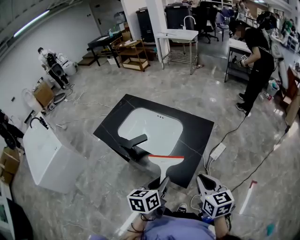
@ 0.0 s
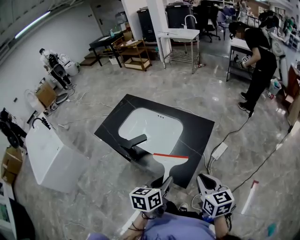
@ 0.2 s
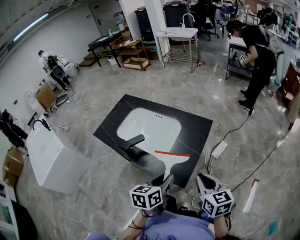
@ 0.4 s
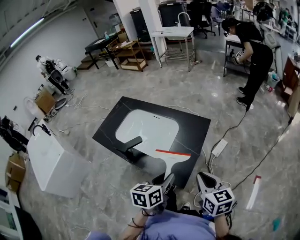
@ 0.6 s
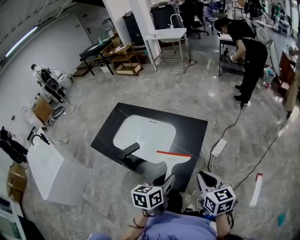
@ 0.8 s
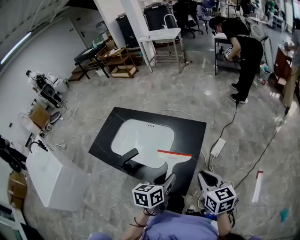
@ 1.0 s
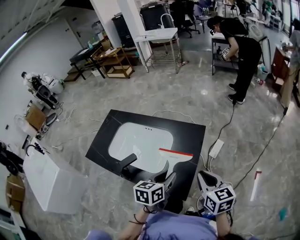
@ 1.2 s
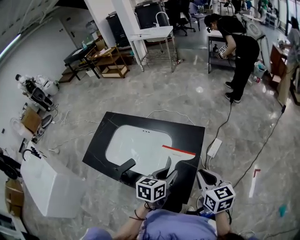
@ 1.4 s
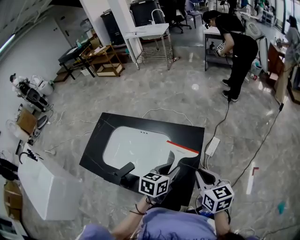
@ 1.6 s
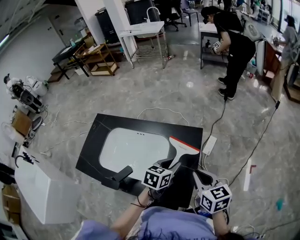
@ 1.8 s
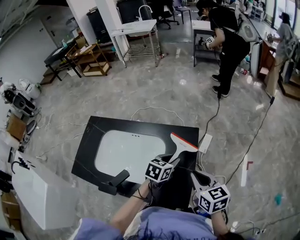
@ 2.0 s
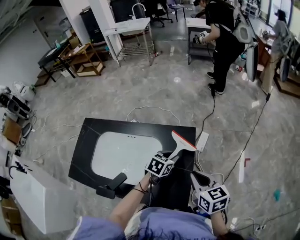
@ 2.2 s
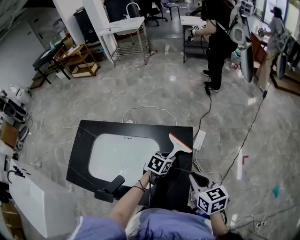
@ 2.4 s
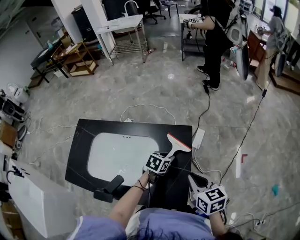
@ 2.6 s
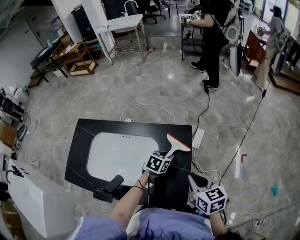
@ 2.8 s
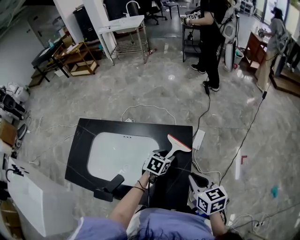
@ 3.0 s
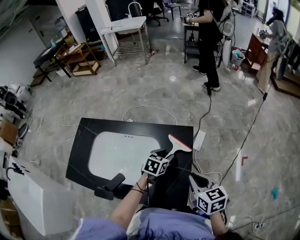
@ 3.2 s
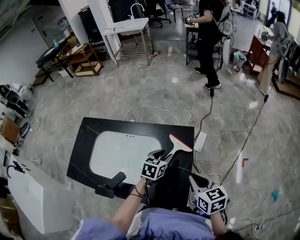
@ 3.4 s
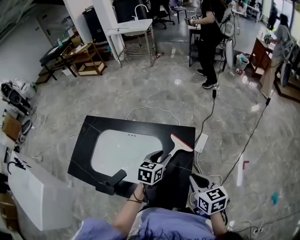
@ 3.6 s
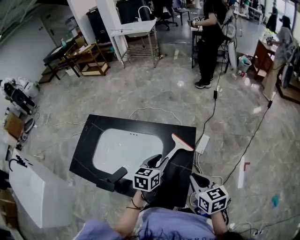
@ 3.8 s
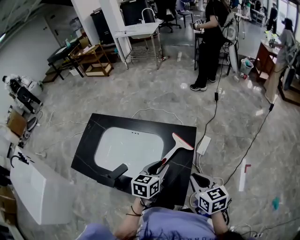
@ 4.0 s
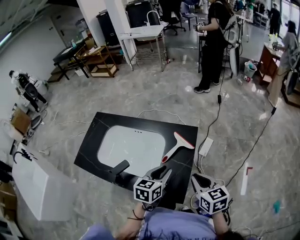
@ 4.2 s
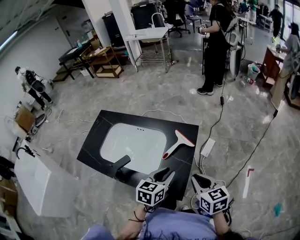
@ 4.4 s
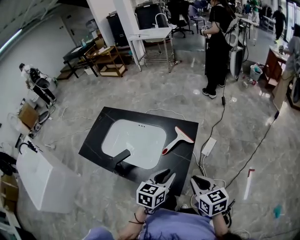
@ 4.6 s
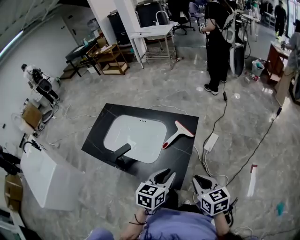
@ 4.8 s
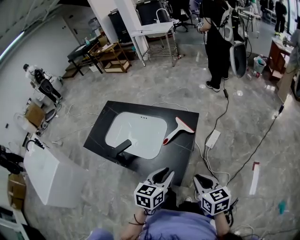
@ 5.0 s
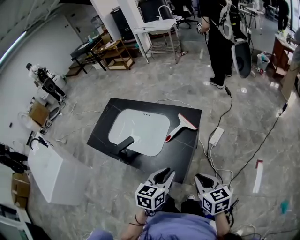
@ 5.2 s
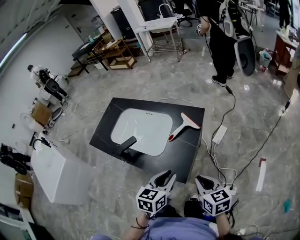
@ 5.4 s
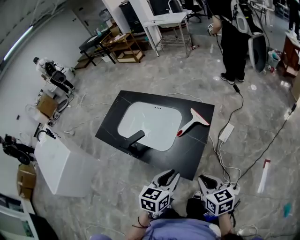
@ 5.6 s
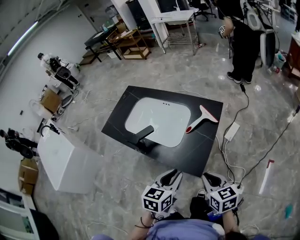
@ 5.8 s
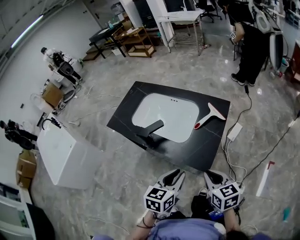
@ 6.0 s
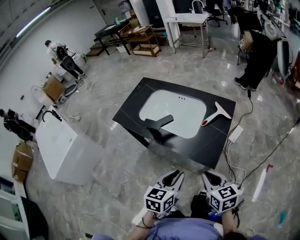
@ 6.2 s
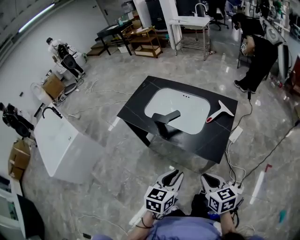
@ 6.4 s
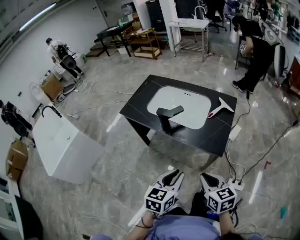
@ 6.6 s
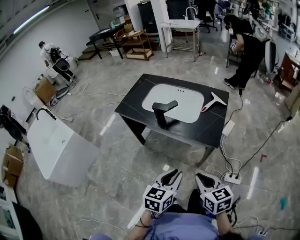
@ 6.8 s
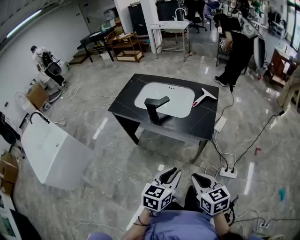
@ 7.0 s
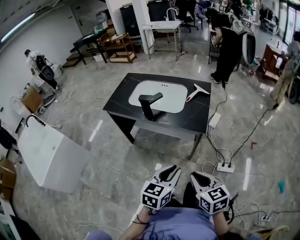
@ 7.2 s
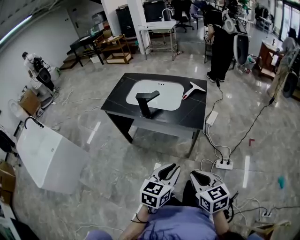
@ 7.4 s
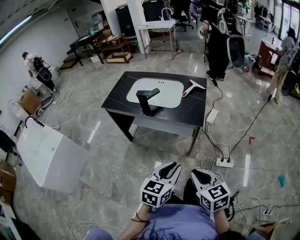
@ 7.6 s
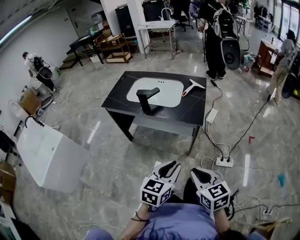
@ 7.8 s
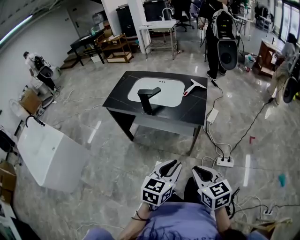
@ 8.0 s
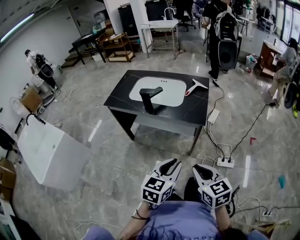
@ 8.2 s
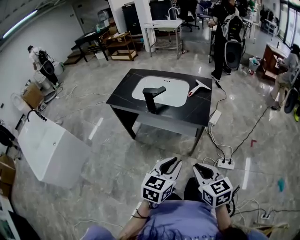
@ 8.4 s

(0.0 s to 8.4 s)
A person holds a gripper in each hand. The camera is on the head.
0.0 s - 1.4 s: The grippers both shift forward by some 15 cm. The left gripper rotates some 30 degrees.
1.4 s - 2.8 s: The right gripper ends up some 5 cm from where it was. The left gripper goes roughly 20 cm downward and forward, and turns by roughly 30 degrees.
2.8 s - 4.2 s: The left gripper goes approximately 20 cm backward and upward, and changes its angle by roughly 30 degrees. The right gripper changes place by approximately 5 cm.
4.2 s - 5.6 s: The two grippers go roughly 15 cm backward.
5.6 s - 7.0 s: Both grippers travel together backward and to the left, some 30 cm.
7.0 s - 8.4 s: Both grippers move backward, about 5 cm.

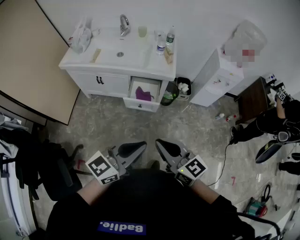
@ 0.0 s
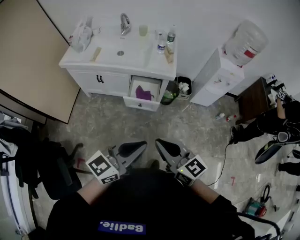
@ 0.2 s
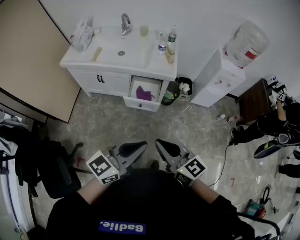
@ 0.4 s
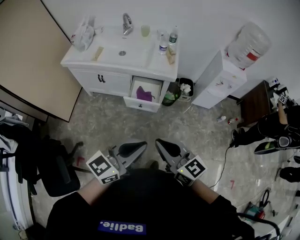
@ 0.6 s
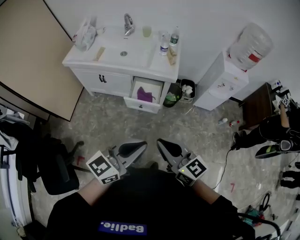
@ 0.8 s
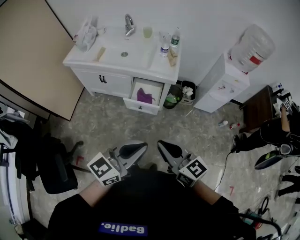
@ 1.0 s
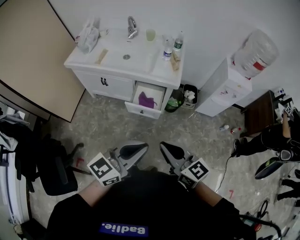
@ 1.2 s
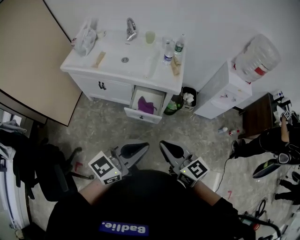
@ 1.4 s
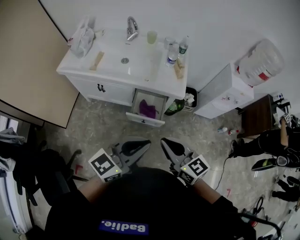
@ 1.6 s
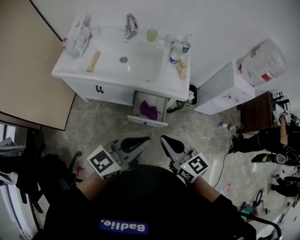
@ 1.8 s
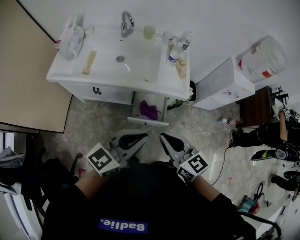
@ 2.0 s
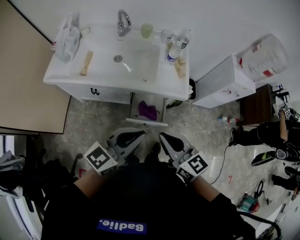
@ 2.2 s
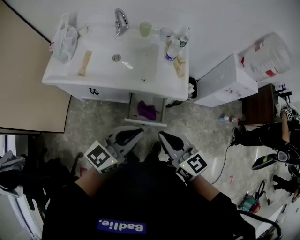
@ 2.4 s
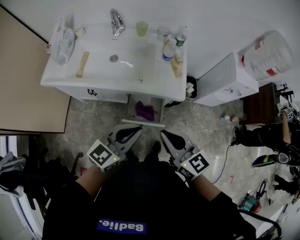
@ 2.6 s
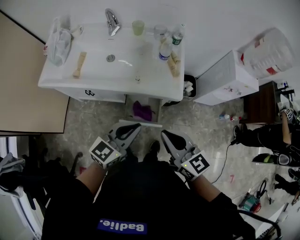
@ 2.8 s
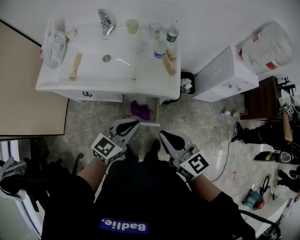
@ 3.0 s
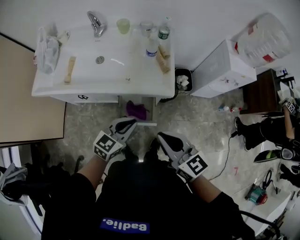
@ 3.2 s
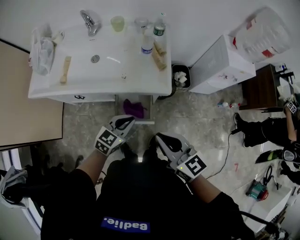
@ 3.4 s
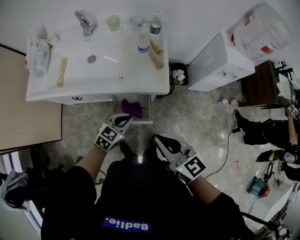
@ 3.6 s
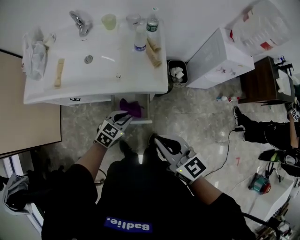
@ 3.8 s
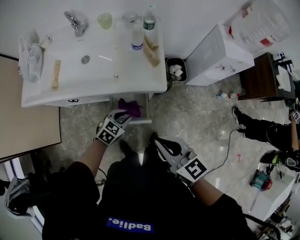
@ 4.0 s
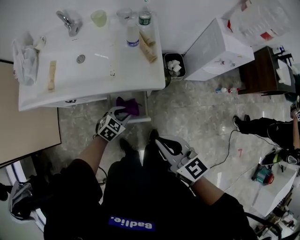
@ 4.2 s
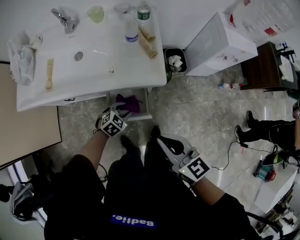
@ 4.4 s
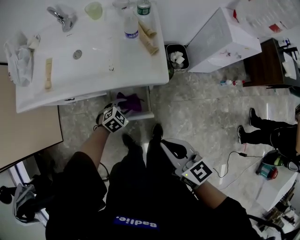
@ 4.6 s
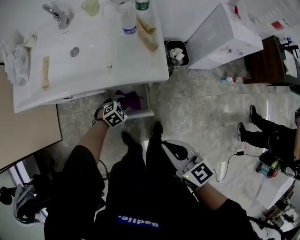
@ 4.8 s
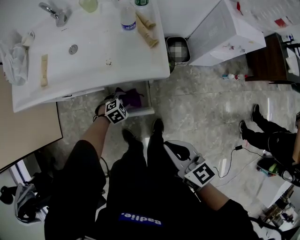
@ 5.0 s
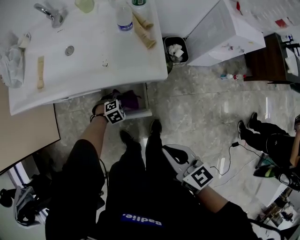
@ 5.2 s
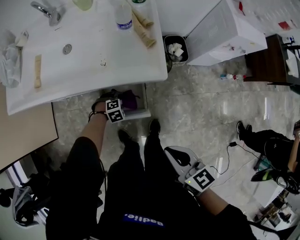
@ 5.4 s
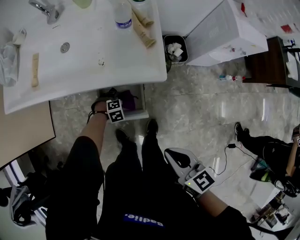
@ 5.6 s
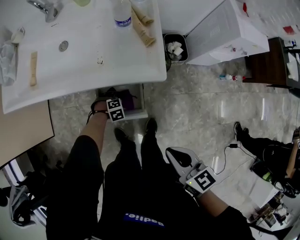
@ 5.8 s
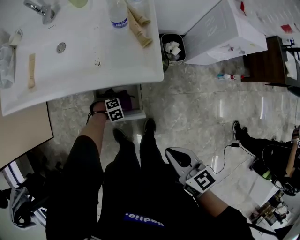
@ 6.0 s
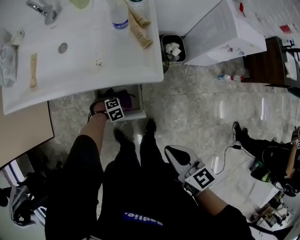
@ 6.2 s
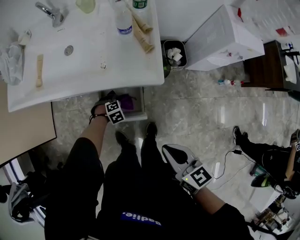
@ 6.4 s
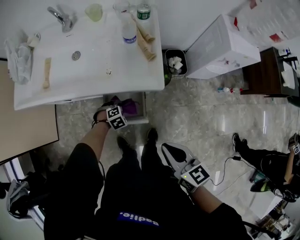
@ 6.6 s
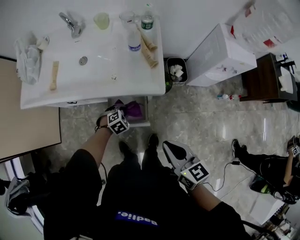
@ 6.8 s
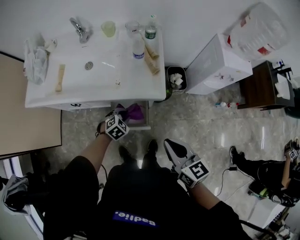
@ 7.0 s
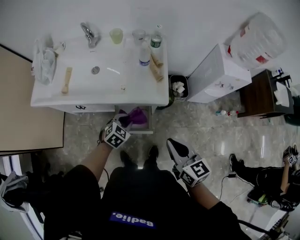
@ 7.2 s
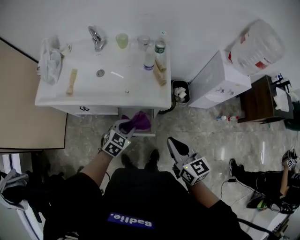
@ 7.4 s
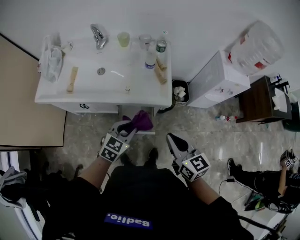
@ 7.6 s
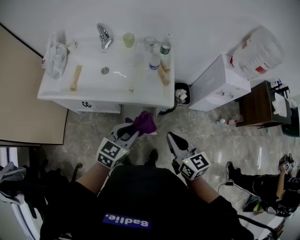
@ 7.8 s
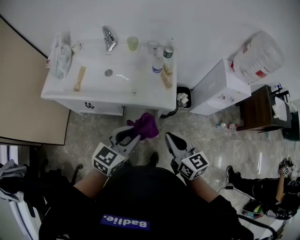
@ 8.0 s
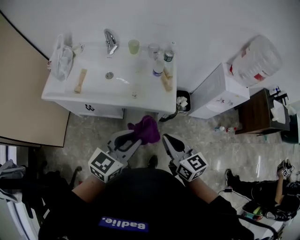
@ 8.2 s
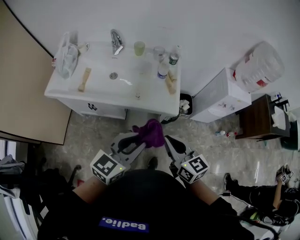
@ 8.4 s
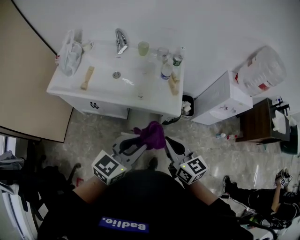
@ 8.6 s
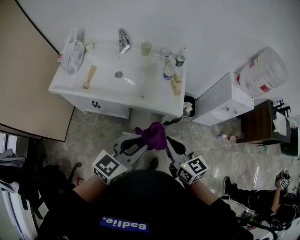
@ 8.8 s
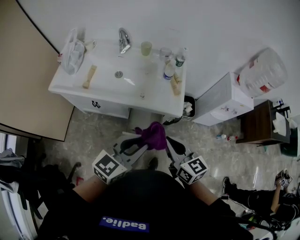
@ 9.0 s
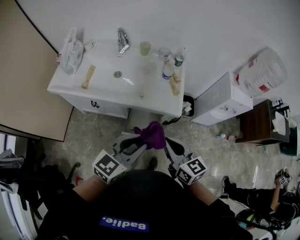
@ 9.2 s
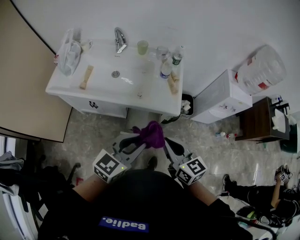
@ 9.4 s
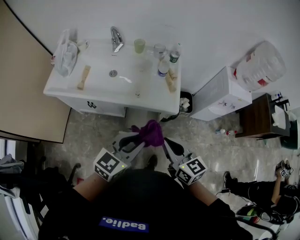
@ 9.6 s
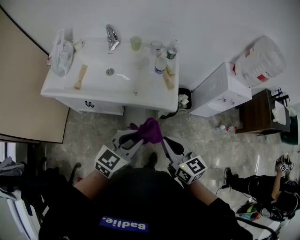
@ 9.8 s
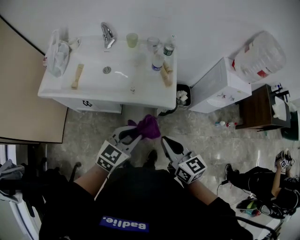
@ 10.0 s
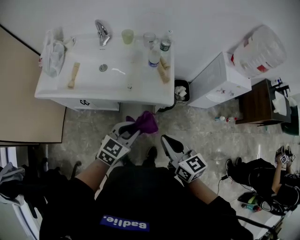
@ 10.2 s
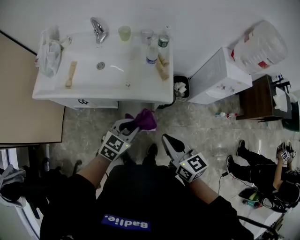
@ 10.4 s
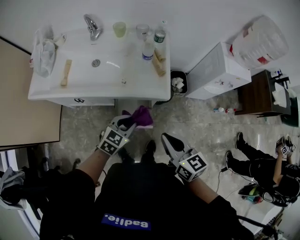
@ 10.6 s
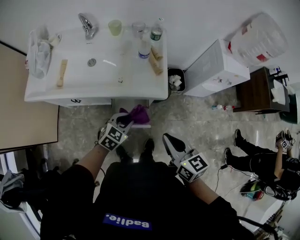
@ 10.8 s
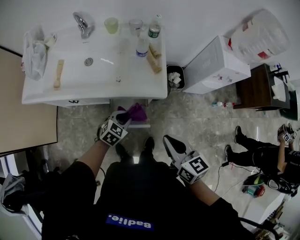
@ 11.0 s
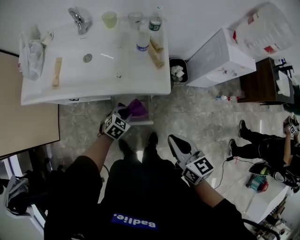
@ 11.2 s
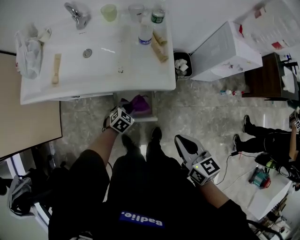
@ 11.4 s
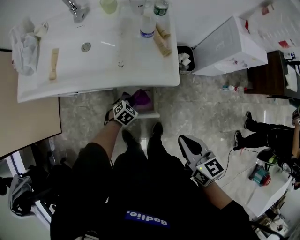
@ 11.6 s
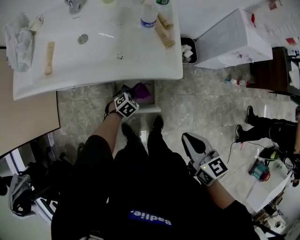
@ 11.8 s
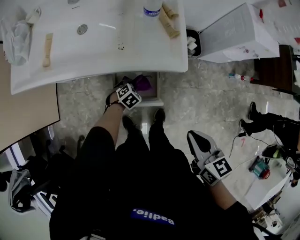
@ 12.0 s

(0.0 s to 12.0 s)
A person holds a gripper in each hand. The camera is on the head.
0.0 s - 1.6 s: Both grippers travel together forward, about 15 cm.
1.6 s - 3.0 s: The left gripper moves forward and downward, roughly 25 cm. Meanwhile the right gripper heads forward, covering approximately 15 cm.
3.0 s - 4.4 s: The left gripper moves downward, roughly 25 cm, points its fingers about 40 degrees further downward, and opens its fingers; the right gripper moves downward and to the right, roughly 10 cm.
4.4 s - 6.0 s: The left gripper heads downward, covering roughly 20 cm, and turns by about 40 degrees, while the right gripper shifts some 10 cm downward.
6.0 s - 7.6 s: The right gripper is displaced upward by some 15 cm; the left gripper travels upward by roughly 40 cm, and angles its fingers upward, by some 50 degrees.
7.6 s - 9.0 s: The left gripper is displaced upward and backward by approximately 20 cm, and changes its angle by about 30 degrees; the right gripper heads to the left, covering roughly 10 cm.
9.0 s - 10.4 s: The left gripper shifts some 20 cm downward and forward, and changes its angle by roughly 20 degrees; the right gripper is displaced to the right by some 5 cm.
10.4 s - 12.0 s: The left gripper heads downward, covering roughly 35 cm, and angles its fingers downward, by roughly 40 degrees; the right gripper moves downward and to the right, approximately 15 cm.

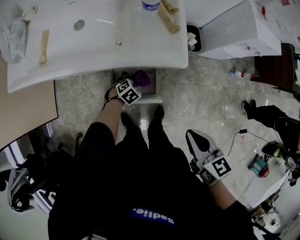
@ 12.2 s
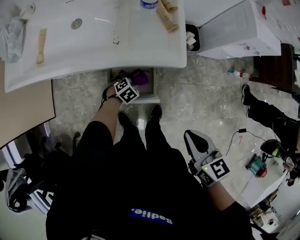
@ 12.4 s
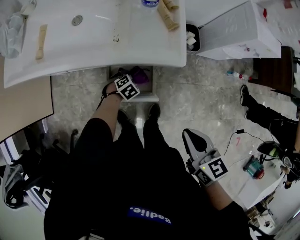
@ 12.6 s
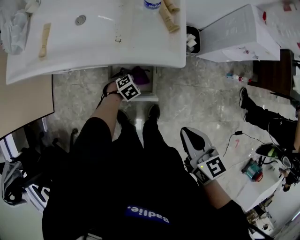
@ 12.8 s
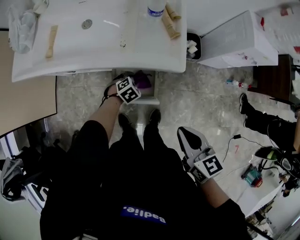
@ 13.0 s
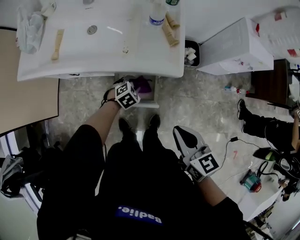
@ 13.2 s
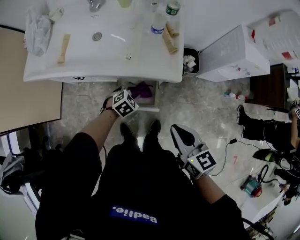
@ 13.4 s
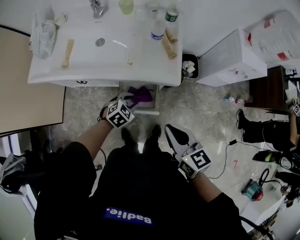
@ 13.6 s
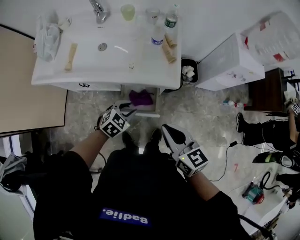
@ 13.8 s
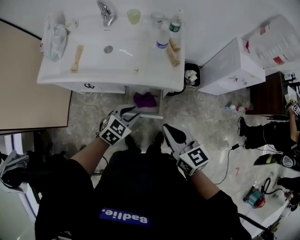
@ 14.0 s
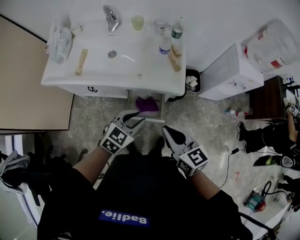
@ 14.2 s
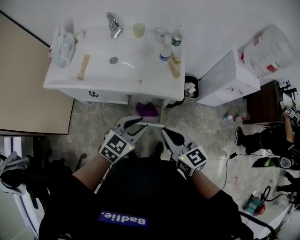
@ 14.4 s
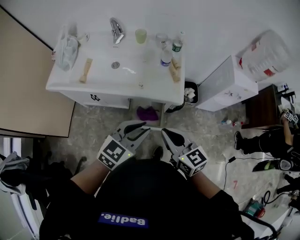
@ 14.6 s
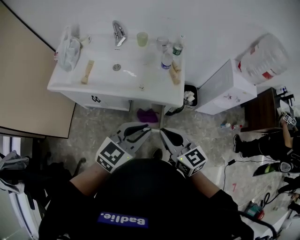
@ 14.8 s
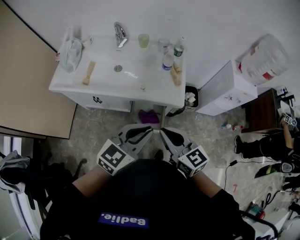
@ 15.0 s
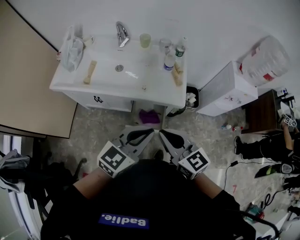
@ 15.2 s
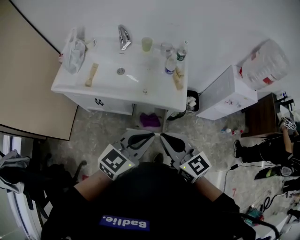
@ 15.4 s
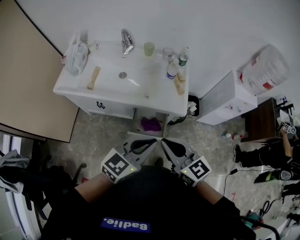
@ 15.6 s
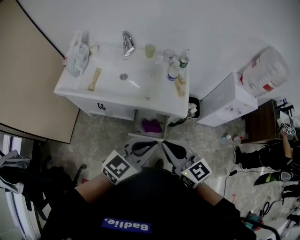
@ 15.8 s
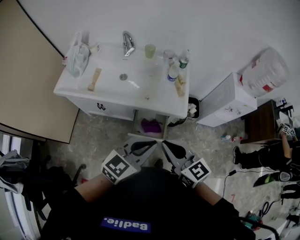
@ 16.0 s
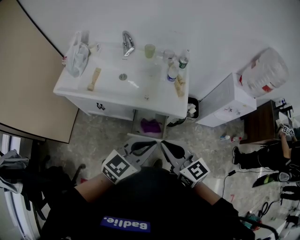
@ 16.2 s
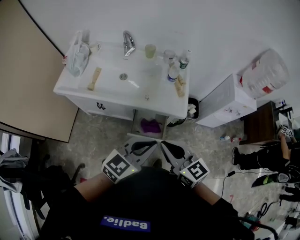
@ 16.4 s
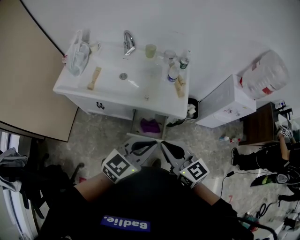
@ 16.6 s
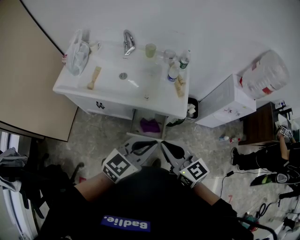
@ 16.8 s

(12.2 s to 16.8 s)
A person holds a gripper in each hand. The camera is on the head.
12.2 s - 13.8 s: The right gripper travels upward and to the left by roughly 15 cm. Meanwhile the left gripper travels upward by about 25 cm, and swivels approximately 20 degrees.
13.8 s - 15.2 s: The left gripper goes some 30 cm upward, tips its fingers upward by about 40 degrees, and closes up. Meanwhile the right gripper travels upward and to the left by approximately 15 cm.
15.2 s - 16.8 s: There are only small adjustments of the grippers.
